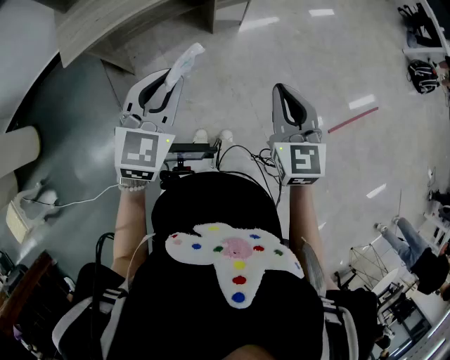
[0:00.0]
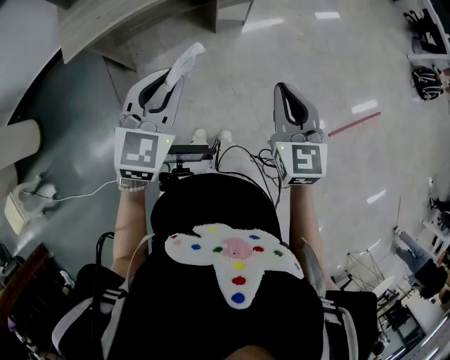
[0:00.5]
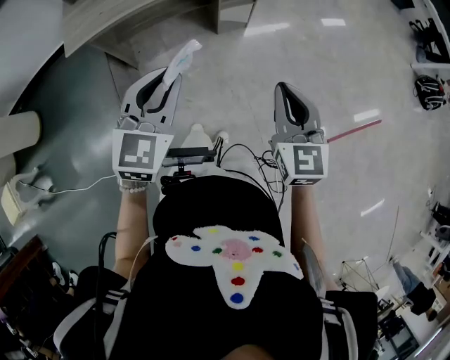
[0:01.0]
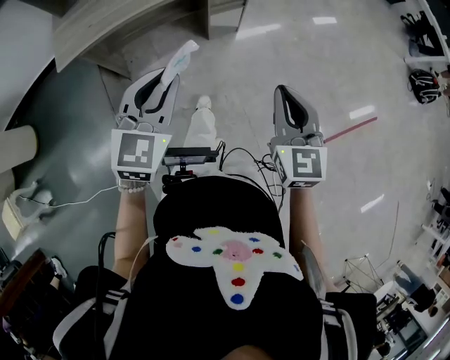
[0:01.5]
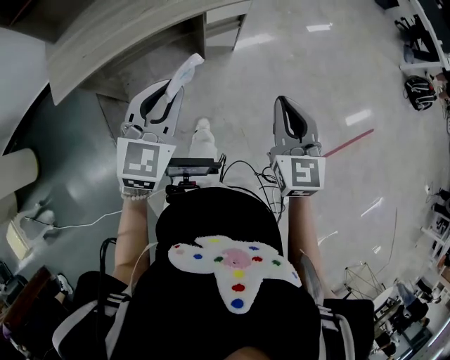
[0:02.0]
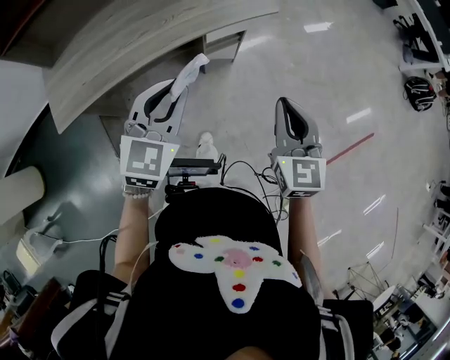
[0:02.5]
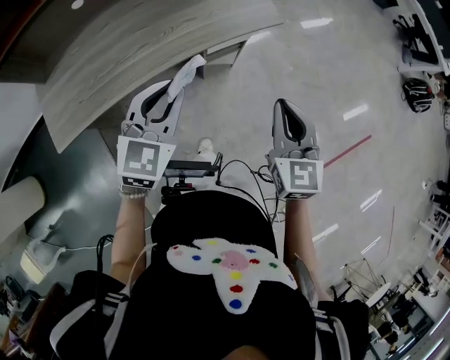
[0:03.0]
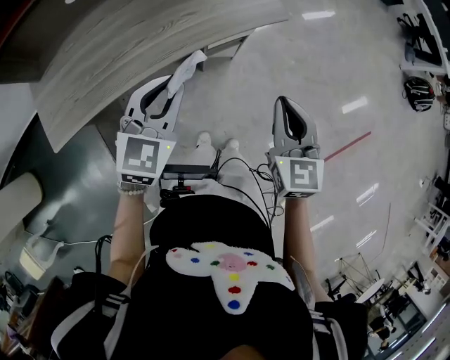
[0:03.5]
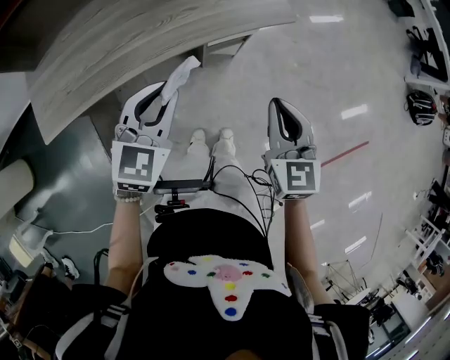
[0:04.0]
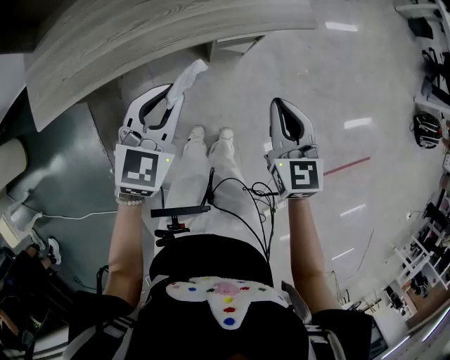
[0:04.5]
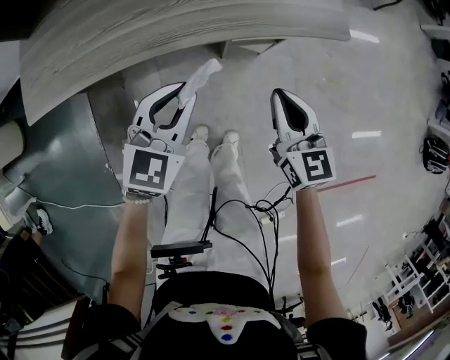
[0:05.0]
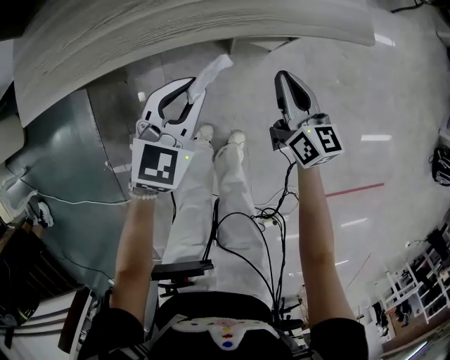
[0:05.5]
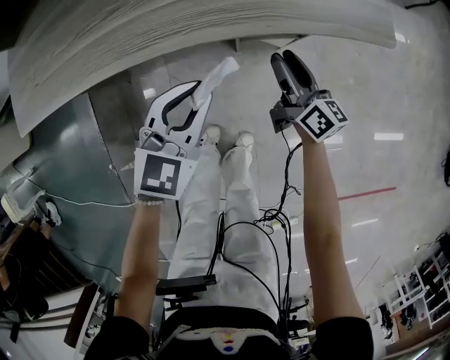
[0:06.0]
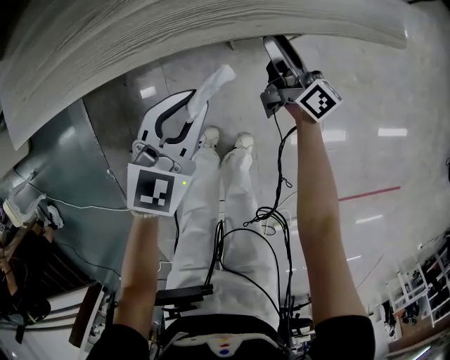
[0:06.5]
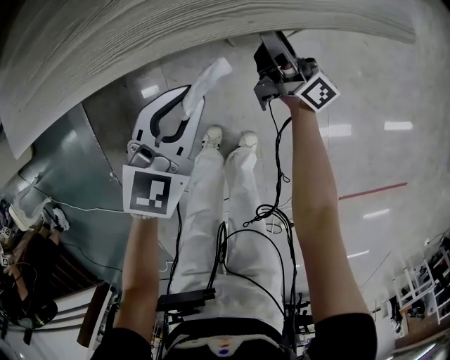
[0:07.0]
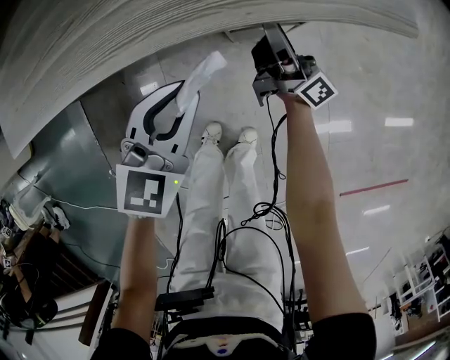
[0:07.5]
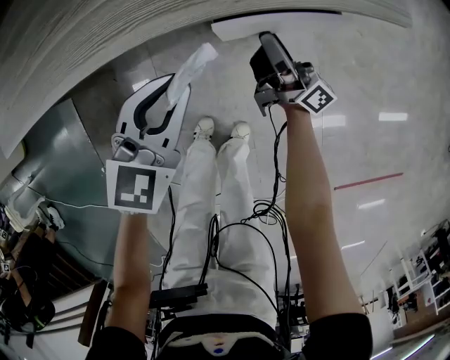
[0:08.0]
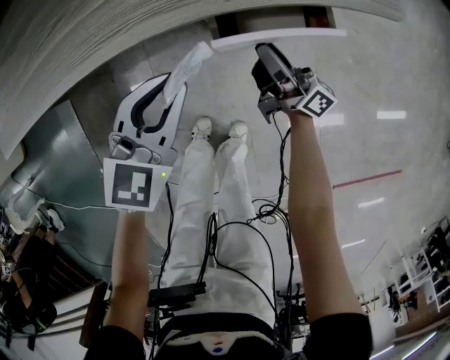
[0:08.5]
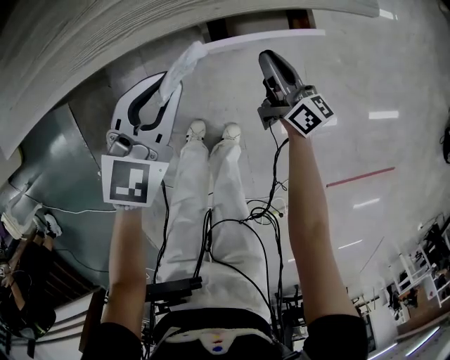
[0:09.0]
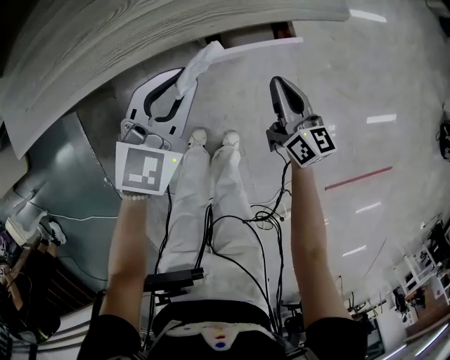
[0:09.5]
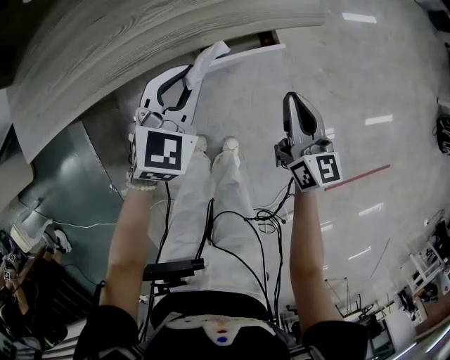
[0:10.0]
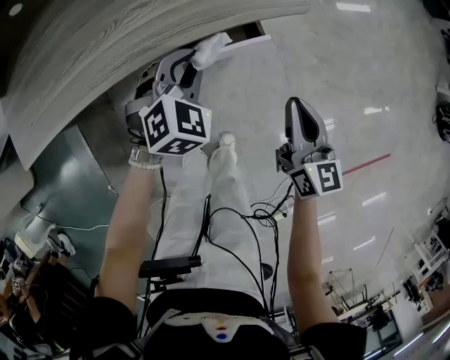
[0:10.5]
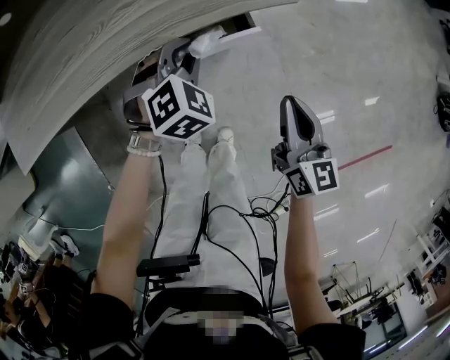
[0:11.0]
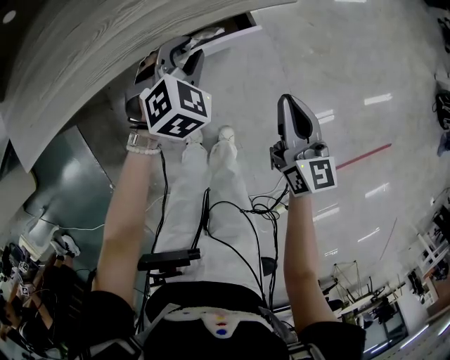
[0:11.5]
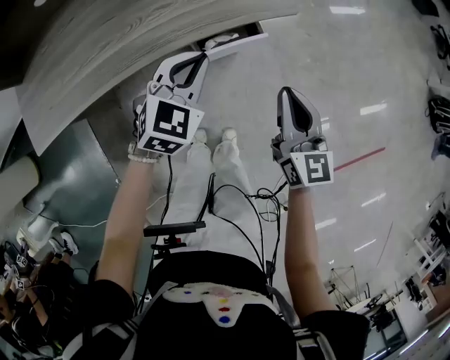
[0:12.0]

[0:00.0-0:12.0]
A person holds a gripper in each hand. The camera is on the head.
0:00.0 to 0:02.0: The right gripper shifts approximately 15 cm forward and to the right; the left gripper moves forward, some 15 cm.
0:02.0 to 0:04.0: Both grippers move forward, approximately 20 cm.
0:04.0 to 0:06.0: The left gripper goes roughly 25 cm downward; the right gripper shifts roughly 40 cm downward and forward, twists some 50 degrees clockwise, seen from behind, and opens.
0:06.0 to 0:08.0: The right gripper turns by approximately 40 degrees.
0:08.0 to 0:10.0: The left gripper shifts about 10 cm upward and to the right. Meanwhile the right gripper shifts approximately 20 cm upward, to the right and backward, tilts its fingers some 30 degrees downward, and closes its fingers.
0:10.0 to 0:12.0: The left gripper shifts about 5 cm upward. Meanwhile the right gripper moves upward, approximately 10 cm.

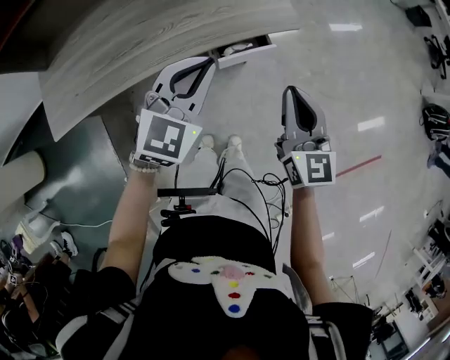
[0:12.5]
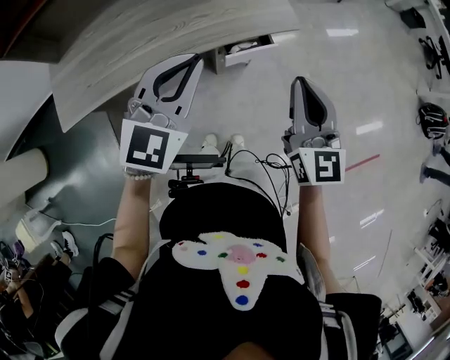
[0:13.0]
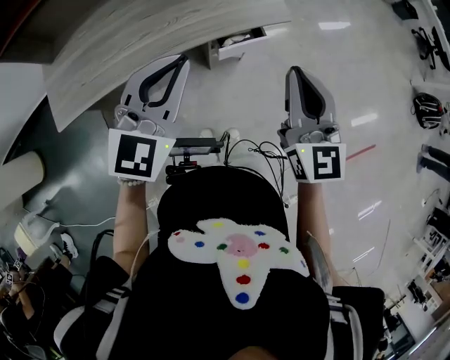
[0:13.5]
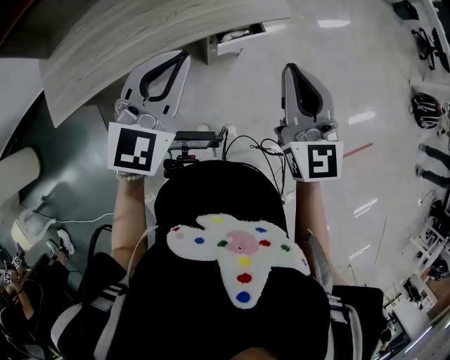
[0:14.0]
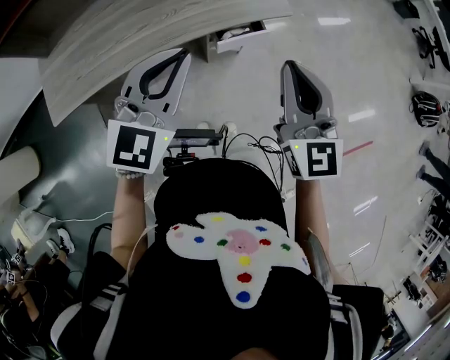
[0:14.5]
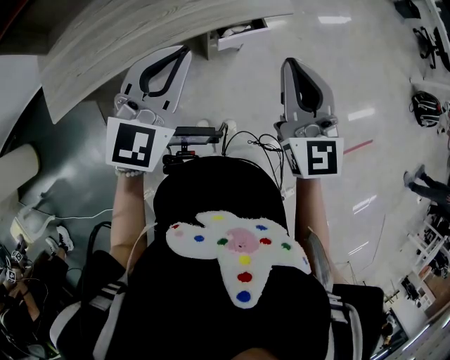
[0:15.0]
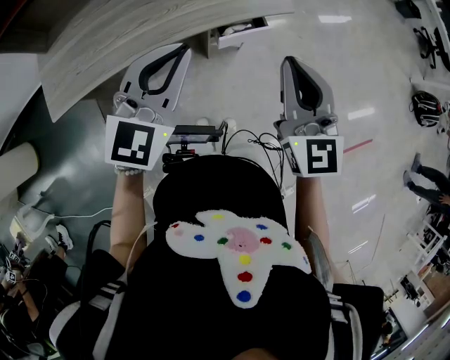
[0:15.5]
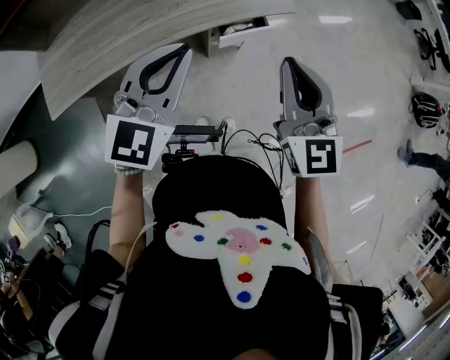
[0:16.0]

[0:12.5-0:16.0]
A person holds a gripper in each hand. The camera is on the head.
0:12.5 to 0:14.5: The left gripper moves upward and backward, approximately 10 cm; the right gripper moves upward, approximately 10 cm.
0:14.5 to 0:16.0: Neither gripper changes place.

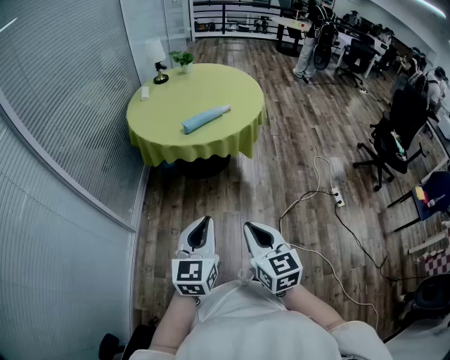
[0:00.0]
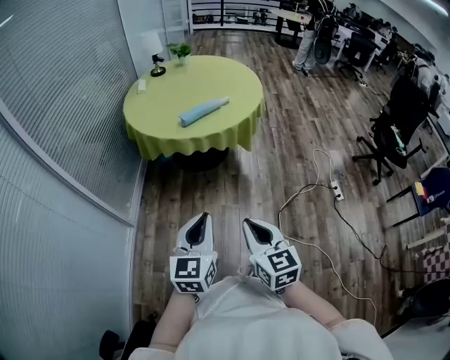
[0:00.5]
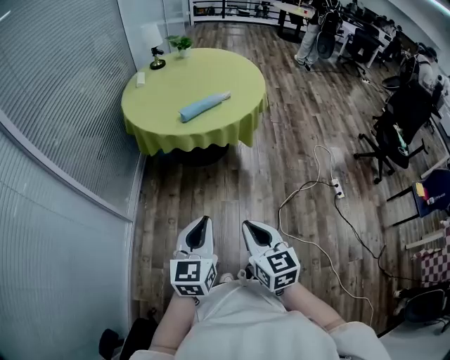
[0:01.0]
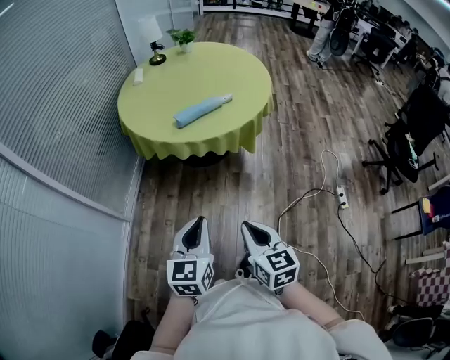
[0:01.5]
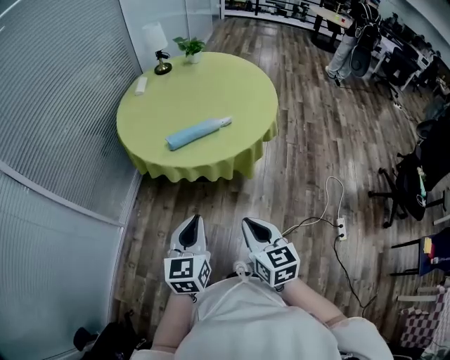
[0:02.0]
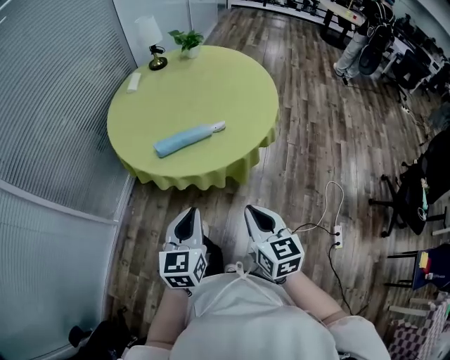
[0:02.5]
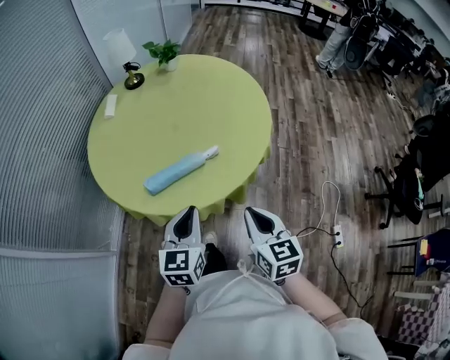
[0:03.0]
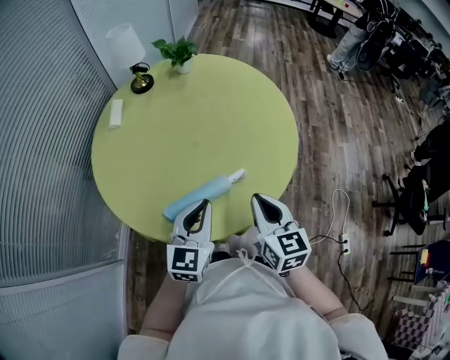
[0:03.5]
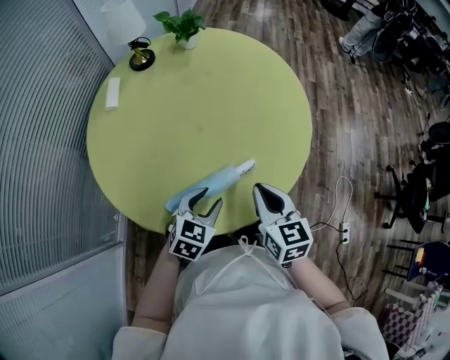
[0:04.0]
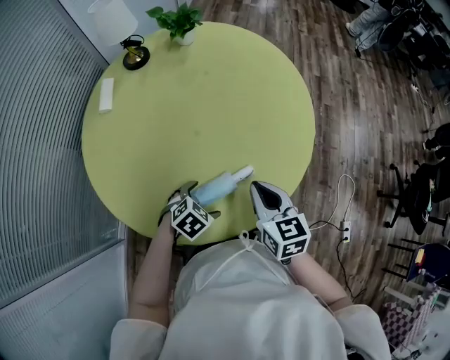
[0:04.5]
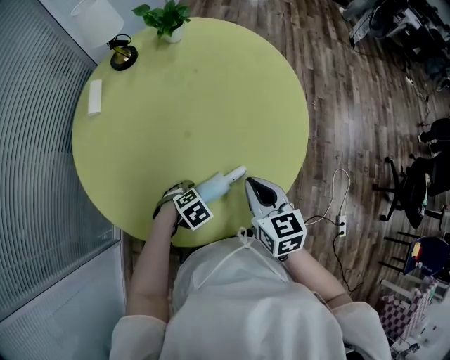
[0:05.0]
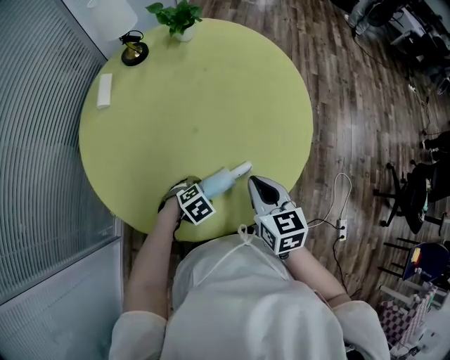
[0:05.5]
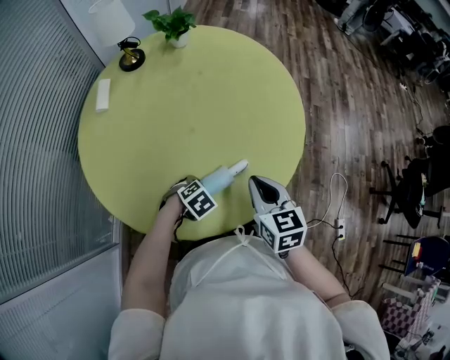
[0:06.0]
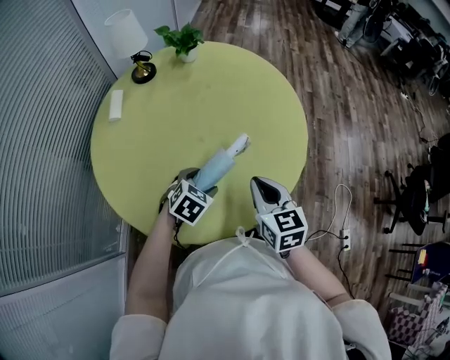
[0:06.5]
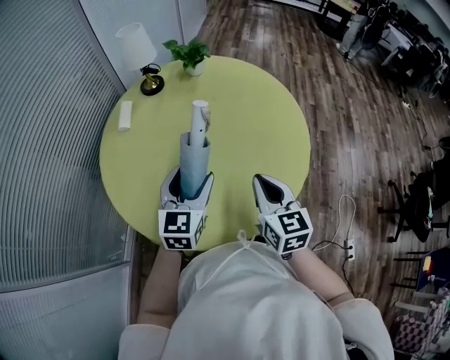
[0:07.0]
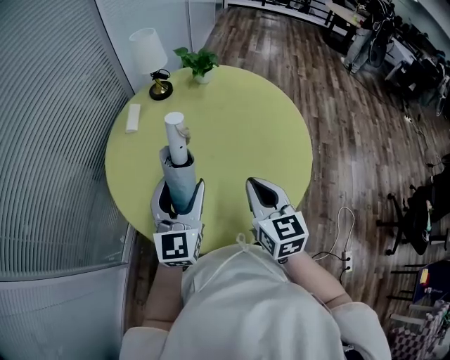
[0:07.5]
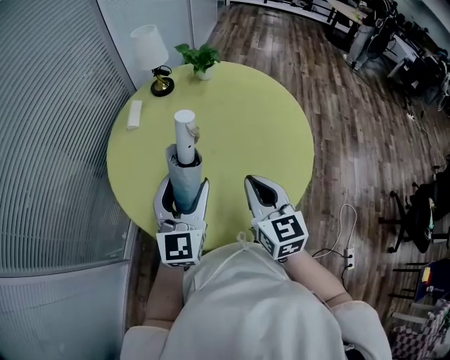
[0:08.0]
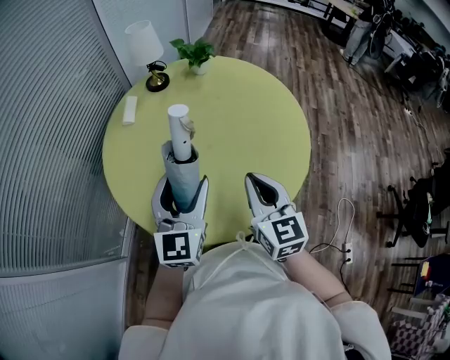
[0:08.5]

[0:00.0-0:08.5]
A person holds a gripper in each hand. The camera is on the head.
0:00.0 to 0:02.0: The two grippers go roughly 35 cm forward and to the right.
0:02.0 to 0:04.0: The two grippers travel together, forward, about 50 cm. The left gripper turns by roughly 40 degrees.
0:04.0 to 0:06.5: The left gripper travels downward and back again, some 15 cm each way, and opens, then closes again.
0:06.5 to 0:08.5: The right gripper travels upward by approximately 10 cm. Meanwhile the left gripper is displaced upward by about 20 cm, and angles its fingers upward, by some 50 degrees.

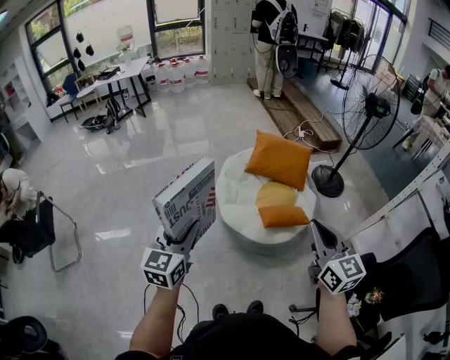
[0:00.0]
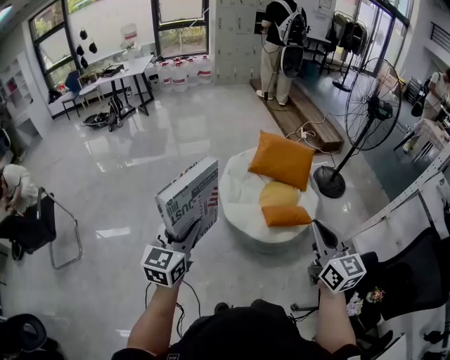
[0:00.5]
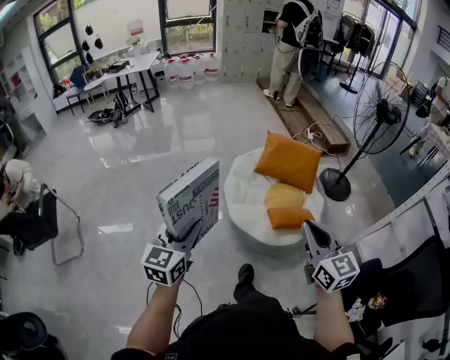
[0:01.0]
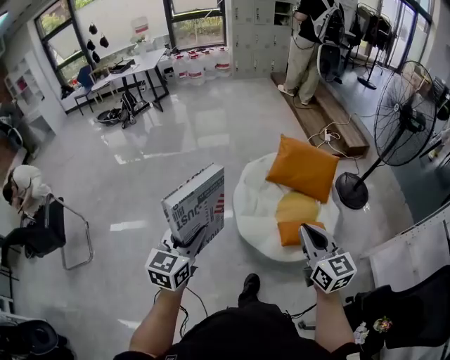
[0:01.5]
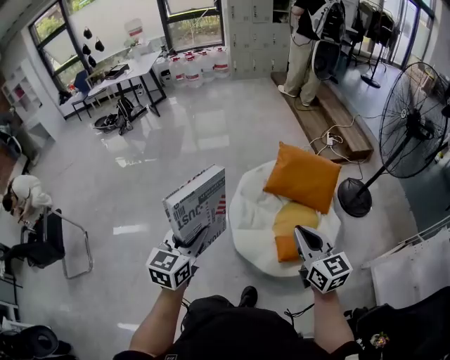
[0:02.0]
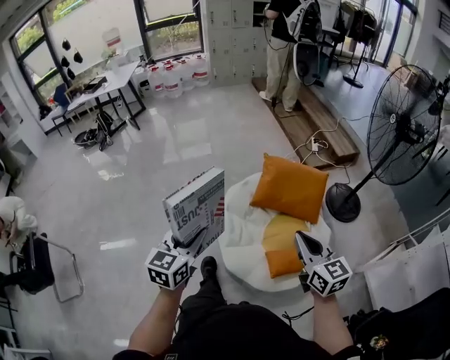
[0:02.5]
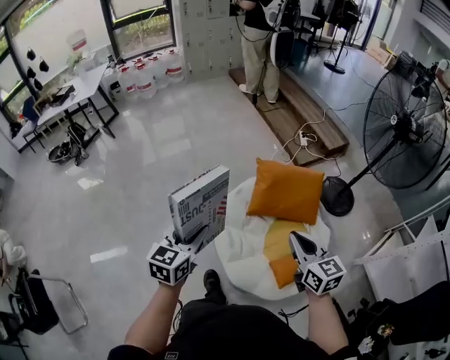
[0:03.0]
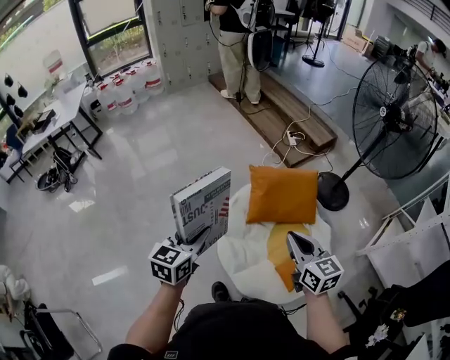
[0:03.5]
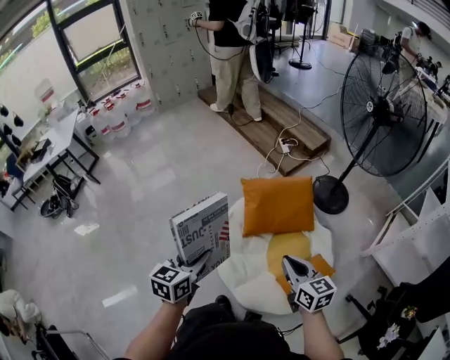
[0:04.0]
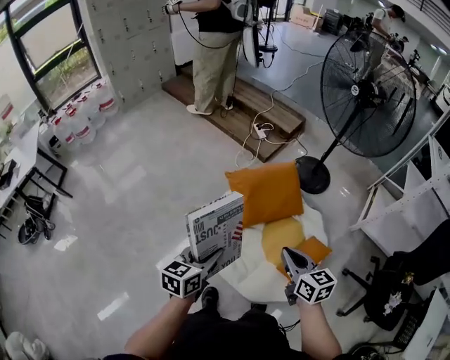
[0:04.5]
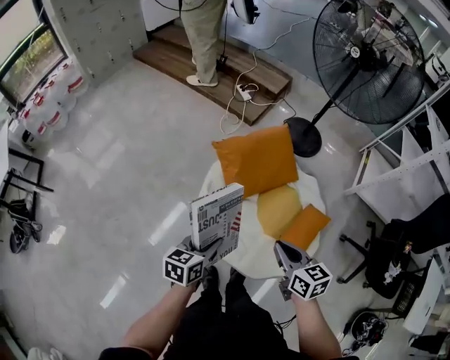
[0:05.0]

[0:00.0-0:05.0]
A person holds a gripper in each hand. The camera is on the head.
0:00.0 to 0:02.5: Both grippers travel together forward, roughly 40 cm.
0:02.5 to 0:05.0: The left gripper ends up roughly 40 cm from where it was, and turns by about 50 degrees. The right gripper ends up approximately 30 cm from where it was, and swivels roughly 50 degrees.
